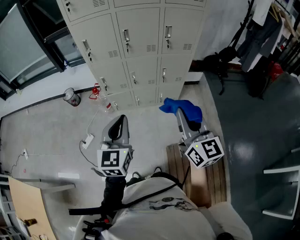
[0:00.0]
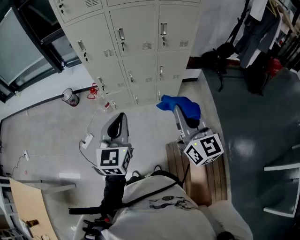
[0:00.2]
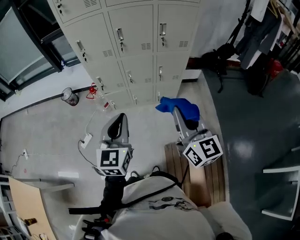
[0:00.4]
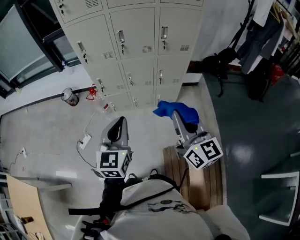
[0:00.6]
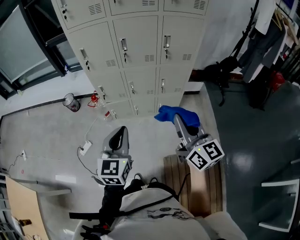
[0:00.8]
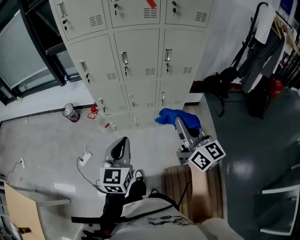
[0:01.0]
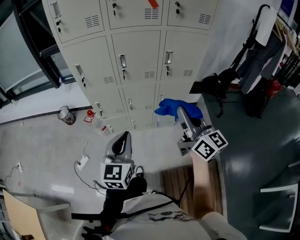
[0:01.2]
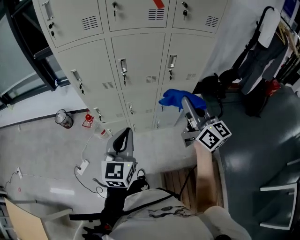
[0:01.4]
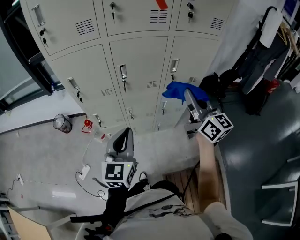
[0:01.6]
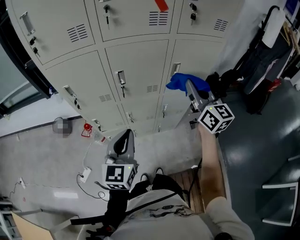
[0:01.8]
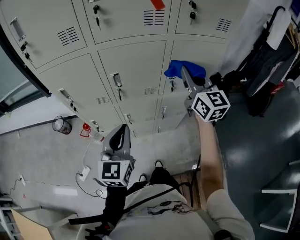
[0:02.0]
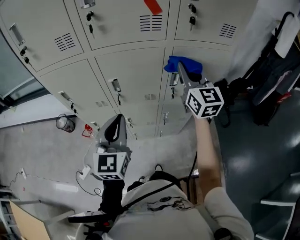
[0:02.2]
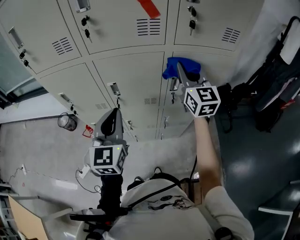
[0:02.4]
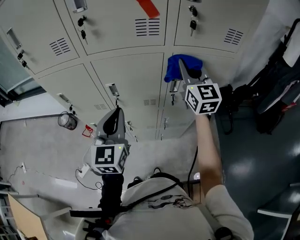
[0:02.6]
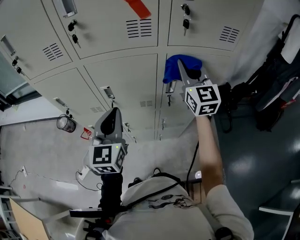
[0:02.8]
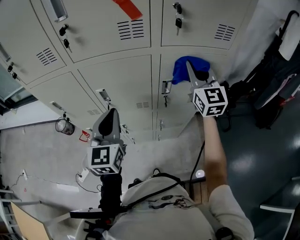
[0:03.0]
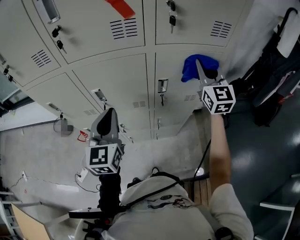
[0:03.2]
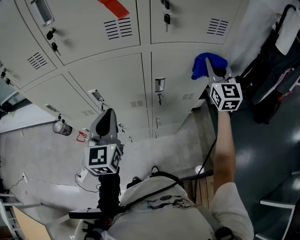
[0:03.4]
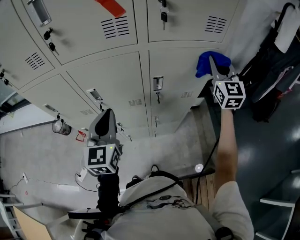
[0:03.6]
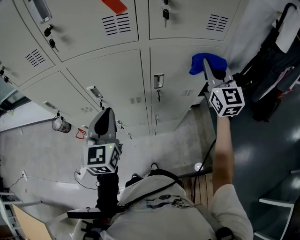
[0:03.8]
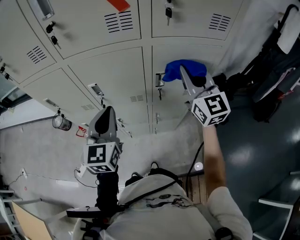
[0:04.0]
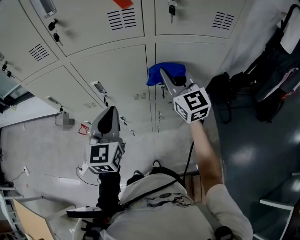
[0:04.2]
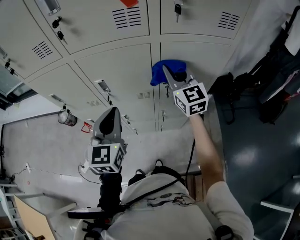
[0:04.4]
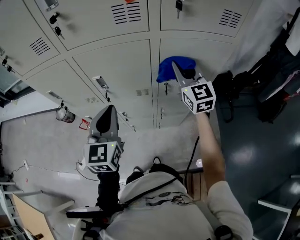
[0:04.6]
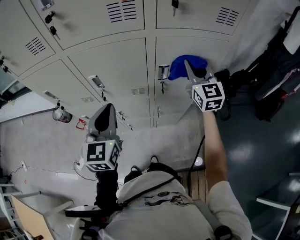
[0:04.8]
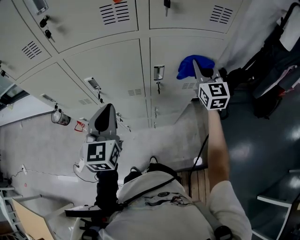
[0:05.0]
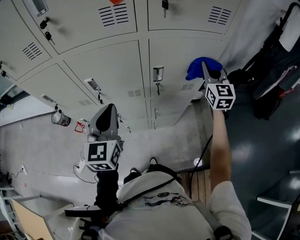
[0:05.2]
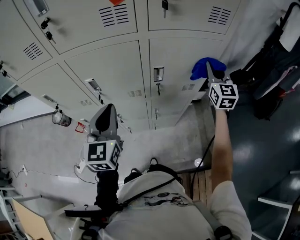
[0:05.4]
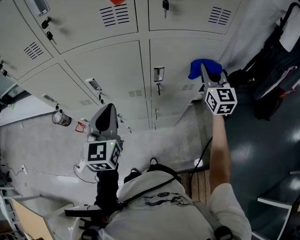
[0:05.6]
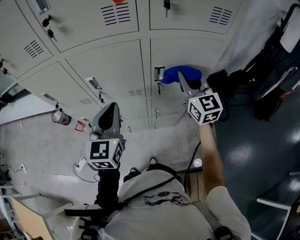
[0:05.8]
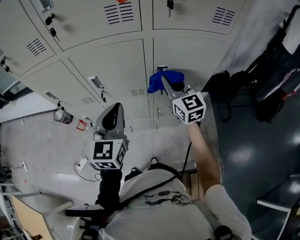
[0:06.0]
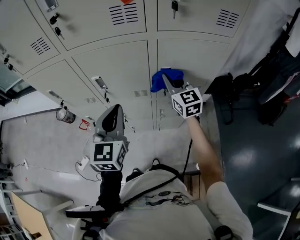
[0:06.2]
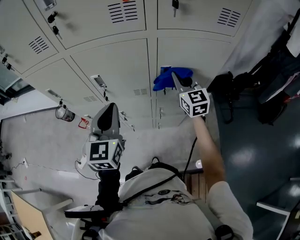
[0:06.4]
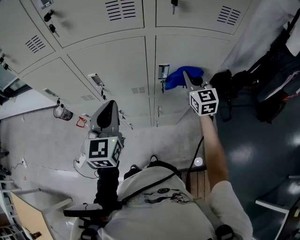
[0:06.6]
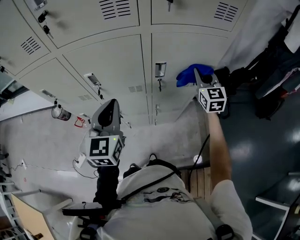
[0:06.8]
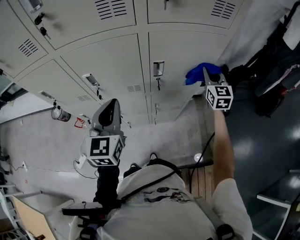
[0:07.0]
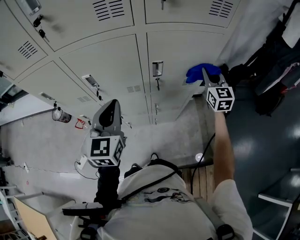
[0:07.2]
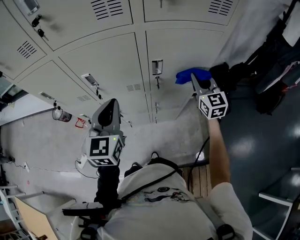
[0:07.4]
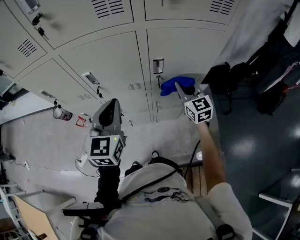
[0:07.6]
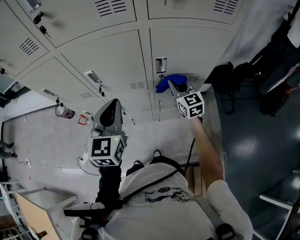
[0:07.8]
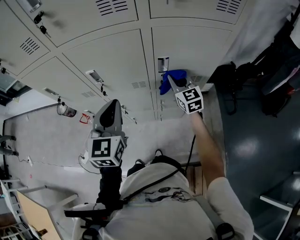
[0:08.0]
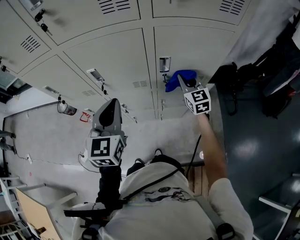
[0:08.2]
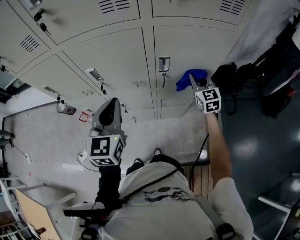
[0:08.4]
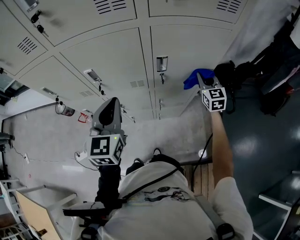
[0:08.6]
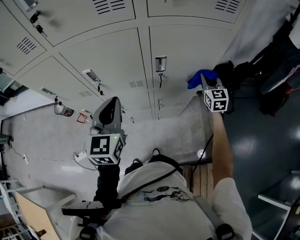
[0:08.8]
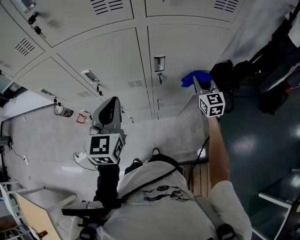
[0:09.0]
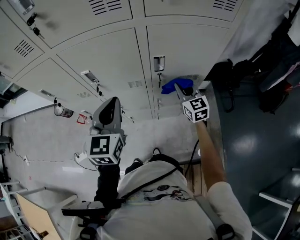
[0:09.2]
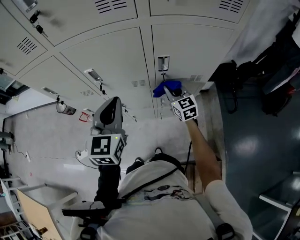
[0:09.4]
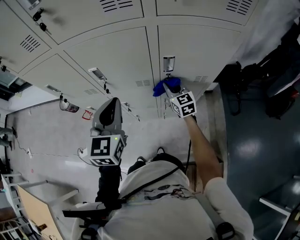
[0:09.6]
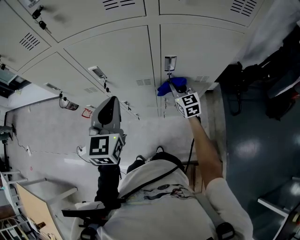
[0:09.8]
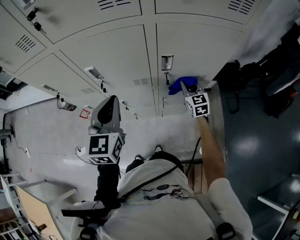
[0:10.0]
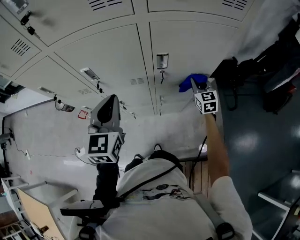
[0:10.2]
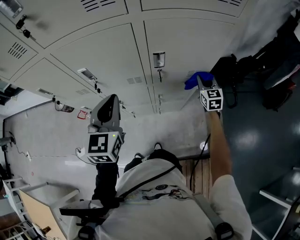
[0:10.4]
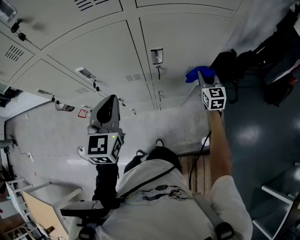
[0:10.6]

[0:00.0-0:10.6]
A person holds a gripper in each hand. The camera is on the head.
0:00.0 to 0:01.6: Both grippers travel together forward, about 30 cm.
0:01.6 to 0:03.0: The right gripper goes some 30 cm forward and to the right, and changes its angle by about 30 degrees. Meanwhile the left gripper shifts roughly 20 cm forward.
0:03.0 to 0:04.6: The right gripper shifts approximately 5 cm downward, and goes to the right and returns, some 15 cm each way.
0:04.6 to 0:06.0: The right gripper travels to the right and back again, some 20 cm each way.
0:06.0 to 0:07.6: The right gripper moves downward, roughly 10 cm, and travels to the right and back again, roughly 20 cm each way.
0:07.6 to 0:09.0: The right gripper swings left and right, about 15 cm each way, with 2 reversals.
0:09.0 to 0:10.6: The right gripper travels downward by about 5 cm, and reaches about 15 cm to the left, then returns.

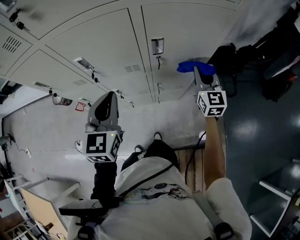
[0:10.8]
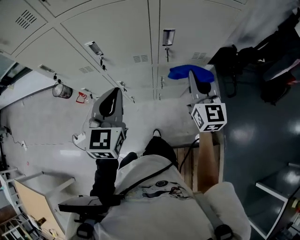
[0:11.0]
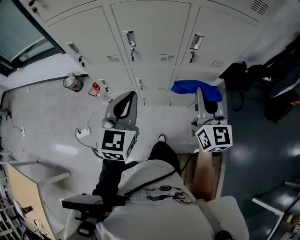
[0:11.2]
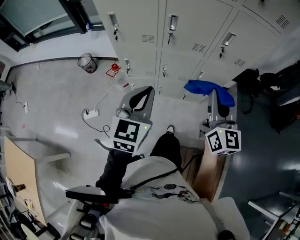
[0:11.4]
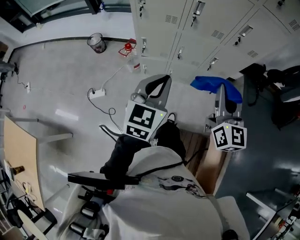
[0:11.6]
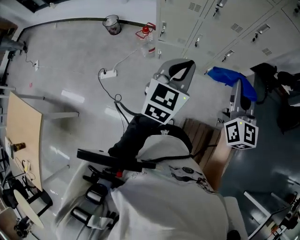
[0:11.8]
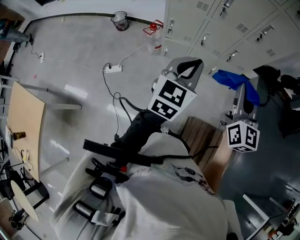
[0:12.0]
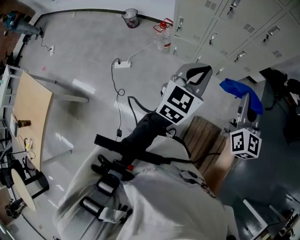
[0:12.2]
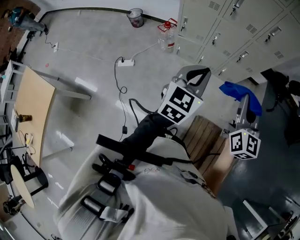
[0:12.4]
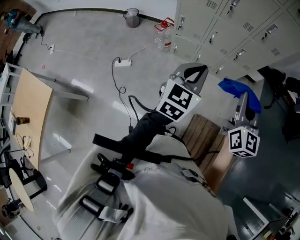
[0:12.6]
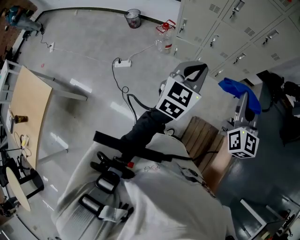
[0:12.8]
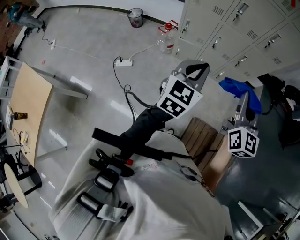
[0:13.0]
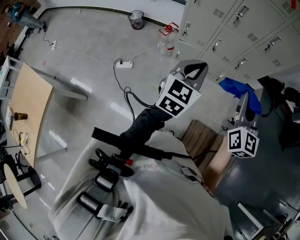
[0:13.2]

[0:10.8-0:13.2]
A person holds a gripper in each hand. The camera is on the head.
0:10.8 to 0:12.0: The two grippers travel together, backward and to the left, roughly 50 cm.
0:12.0 to 0:13.2: Both grippers travel together backward, roughly 5 cm.

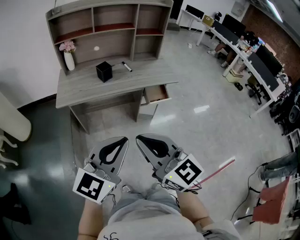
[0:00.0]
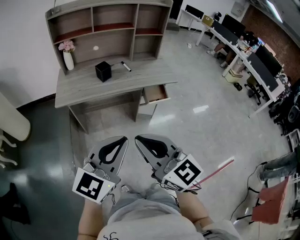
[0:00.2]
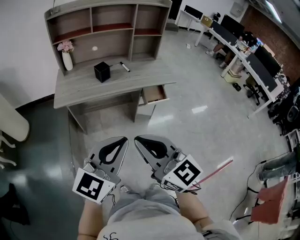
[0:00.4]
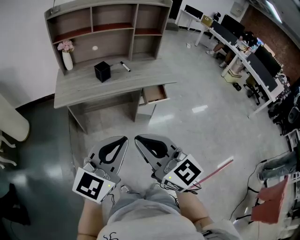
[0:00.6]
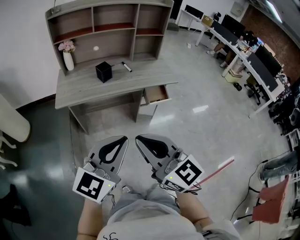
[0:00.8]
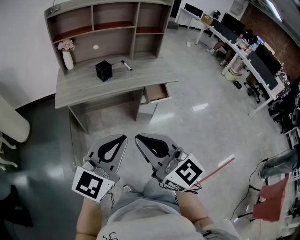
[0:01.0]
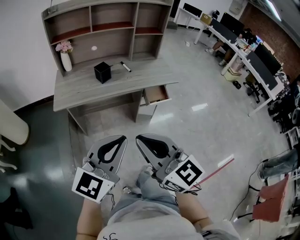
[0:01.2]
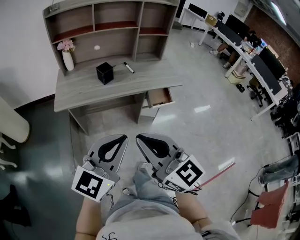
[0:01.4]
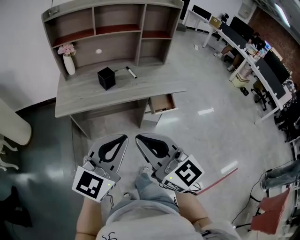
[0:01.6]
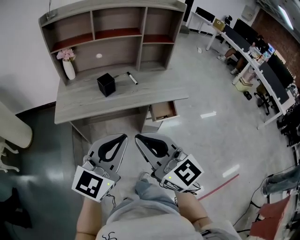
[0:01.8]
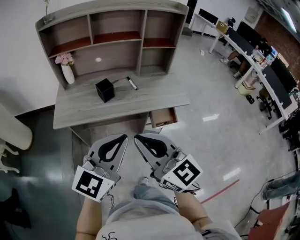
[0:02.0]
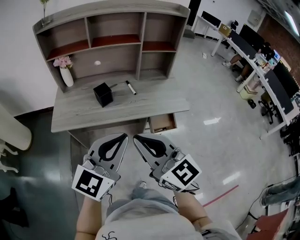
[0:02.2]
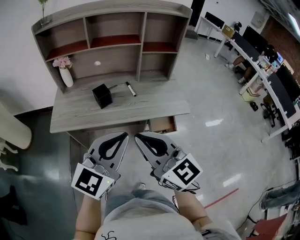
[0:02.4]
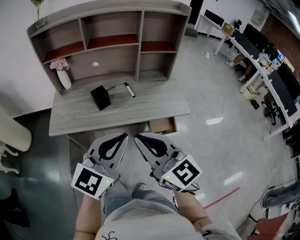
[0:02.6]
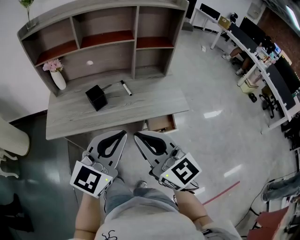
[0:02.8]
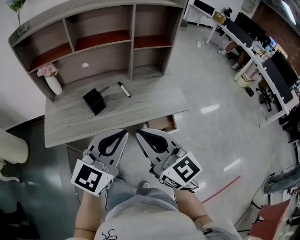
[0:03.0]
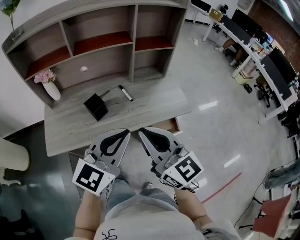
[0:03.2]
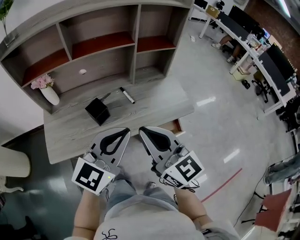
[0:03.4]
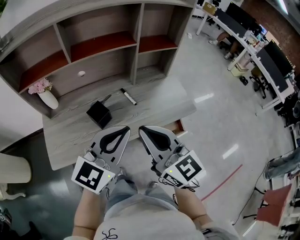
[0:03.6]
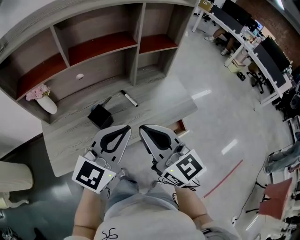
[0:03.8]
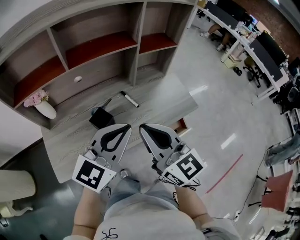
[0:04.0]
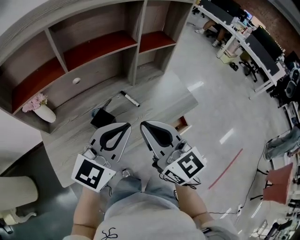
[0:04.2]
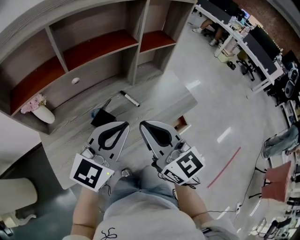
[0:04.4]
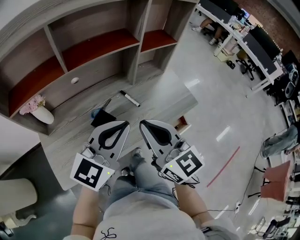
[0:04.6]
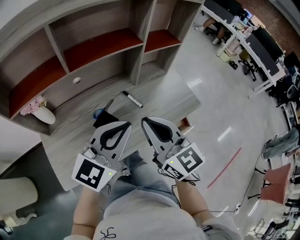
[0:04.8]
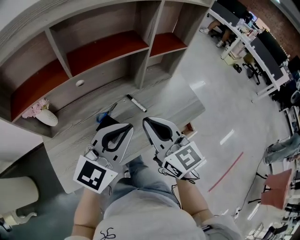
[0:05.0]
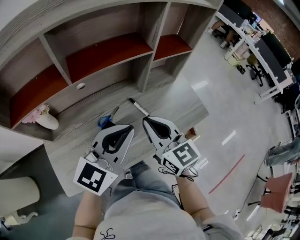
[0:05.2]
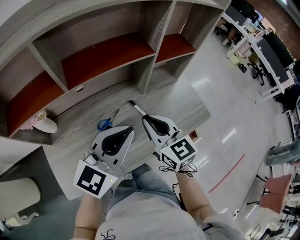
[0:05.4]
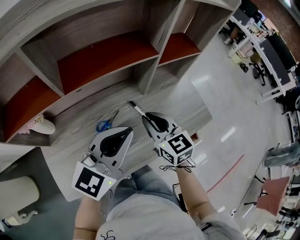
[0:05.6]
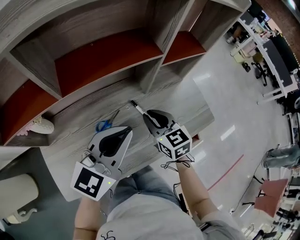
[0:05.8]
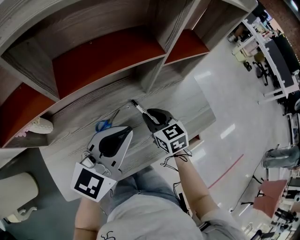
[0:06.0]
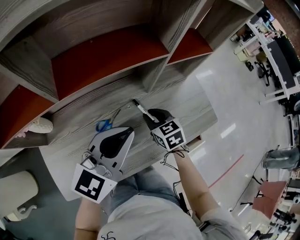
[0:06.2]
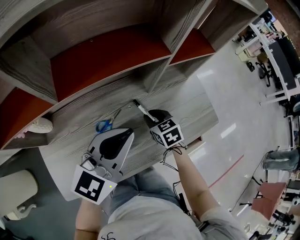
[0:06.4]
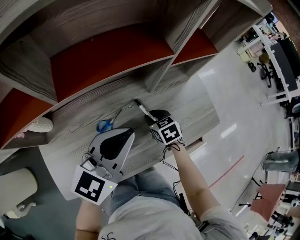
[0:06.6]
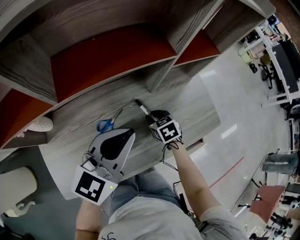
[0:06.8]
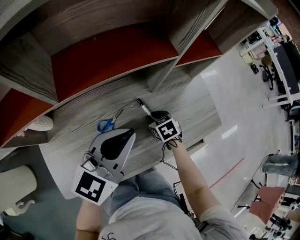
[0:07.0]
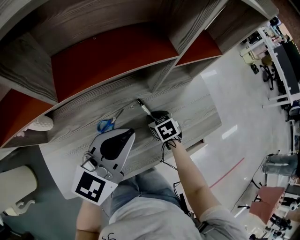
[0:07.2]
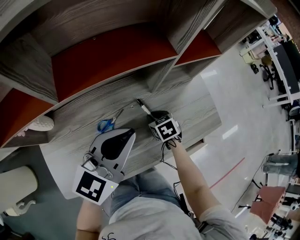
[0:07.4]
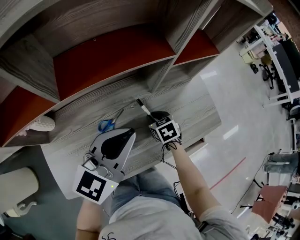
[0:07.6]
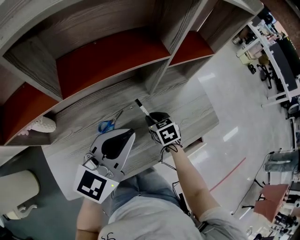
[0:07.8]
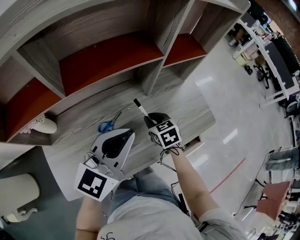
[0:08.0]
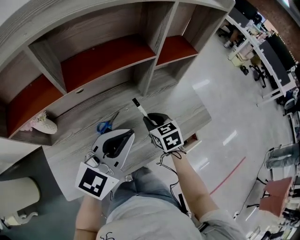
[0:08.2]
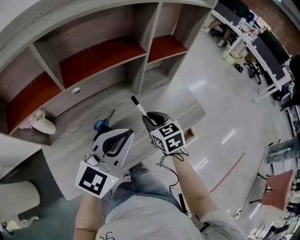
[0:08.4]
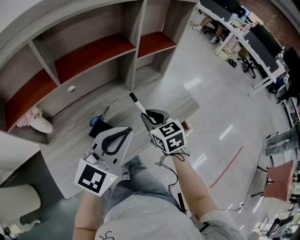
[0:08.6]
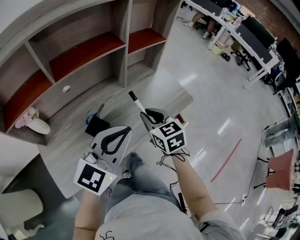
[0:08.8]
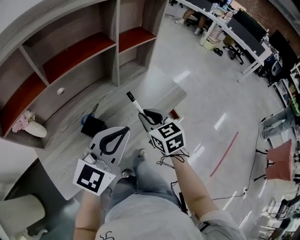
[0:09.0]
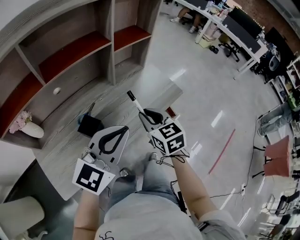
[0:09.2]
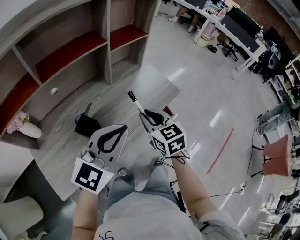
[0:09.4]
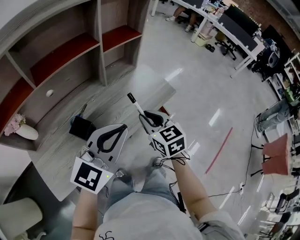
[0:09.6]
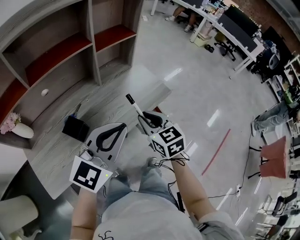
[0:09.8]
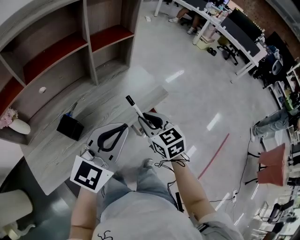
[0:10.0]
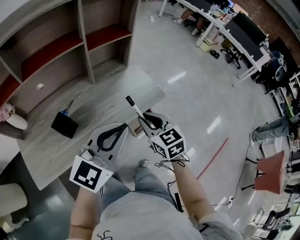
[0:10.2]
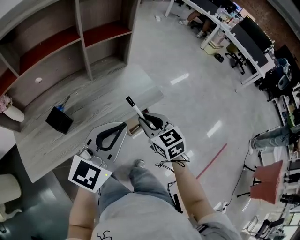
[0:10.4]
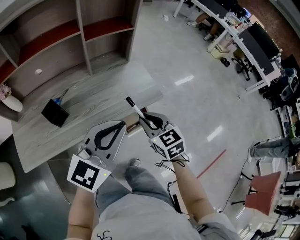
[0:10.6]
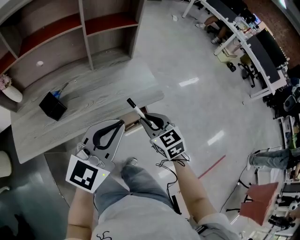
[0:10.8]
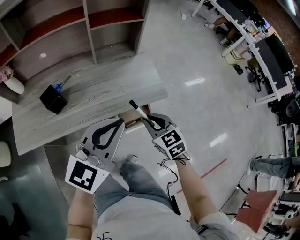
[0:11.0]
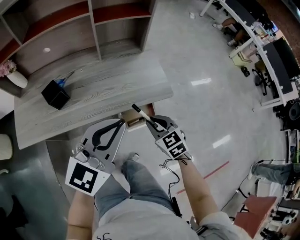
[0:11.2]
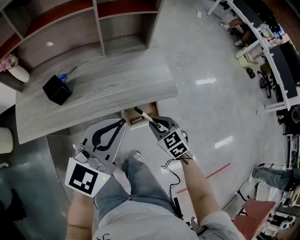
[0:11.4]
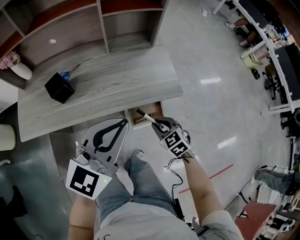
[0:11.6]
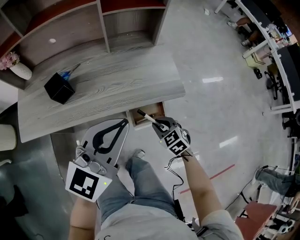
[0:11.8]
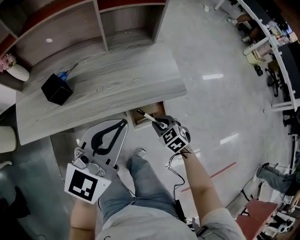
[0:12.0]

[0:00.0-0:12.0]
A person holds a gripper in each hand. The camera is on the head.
0:00.0 to 0:01.6: The grippers both shift forward by some 10 cm.
0:01.6 to 0:03.0: The grippers both shift forward by roughly 25 cm.
0:03.0 to 0:04.4: The grippers both shift forward and to the left by roughly 20 cm.
0:04.4 to 0:06.0: The right gripper heads forward and downward, covering some 30 cm, and tips its fingers downward by roughly 30 degrees, while the left gripper shifts approximately 15 cm forward.
0:06.0 to 0:07.6: The right gripper heads downward, covering about 10 cm, and changes its angle by some 20 degrees.
0:07.6 to 0:09.0: The right gripper shifts about 25 cm upward and backward, and changes its angle by roughly 30 degrees; the left gripper moves backward and to the right, about 15 cm.
0:09.0 to 0:10.4: The grippers both shift to the right by roughly 20 cm.
0:10.4 to 0:12.0: The left gripper travels downward by roughly 5 cm; the right gripper moves downward, roughly 25 cm, and swivels approximately 40 degrees.
